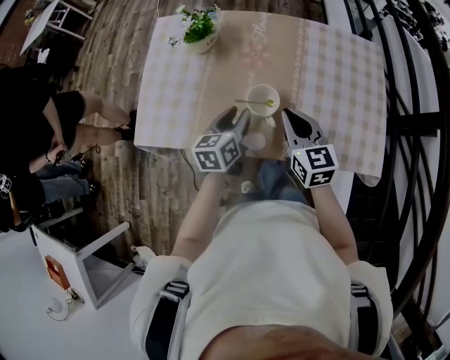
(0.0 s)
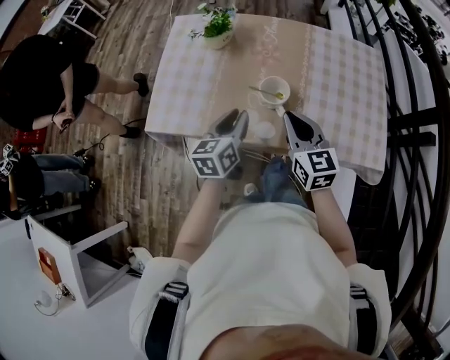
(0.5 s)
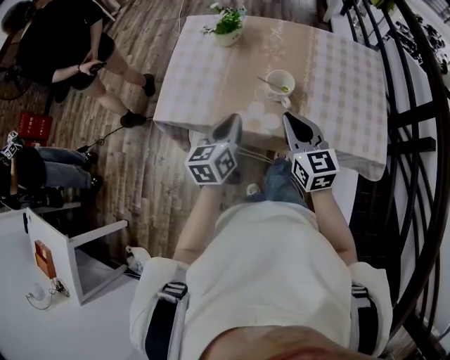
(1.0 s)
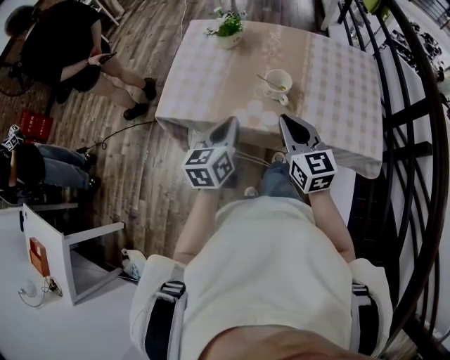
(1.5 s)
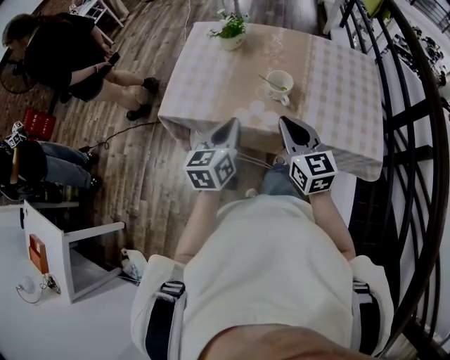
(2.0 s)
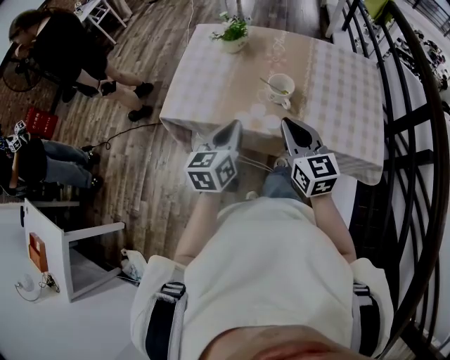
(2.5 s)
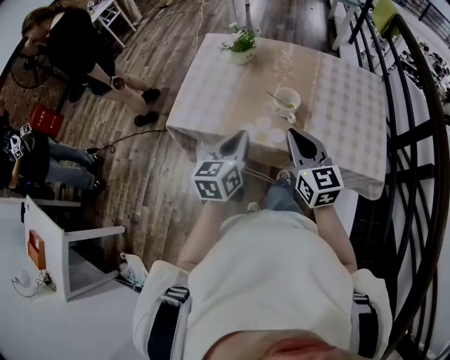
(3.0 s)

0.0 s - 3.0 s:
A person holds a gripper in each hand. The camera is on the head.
0.0 s - 1.5 s: Both grippers move backward, upward and to the left, roughly 15 cm. The left gripper closes.
1.5 s - 3.0 s: The grippers make only small movements.

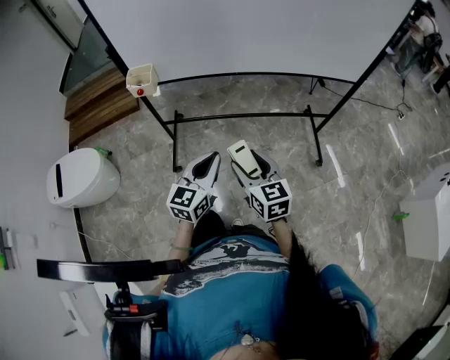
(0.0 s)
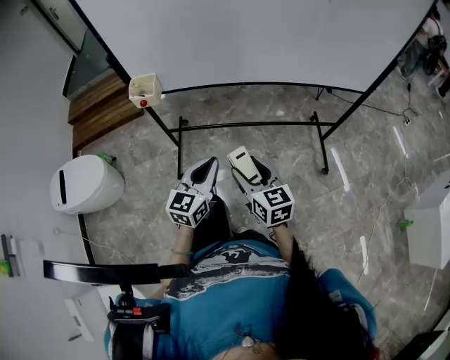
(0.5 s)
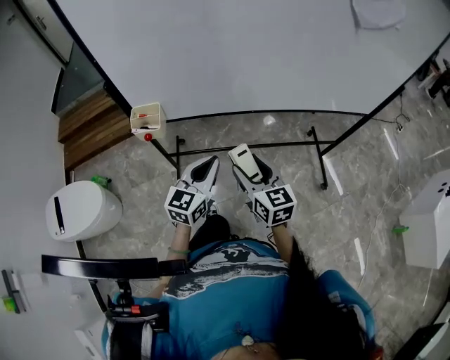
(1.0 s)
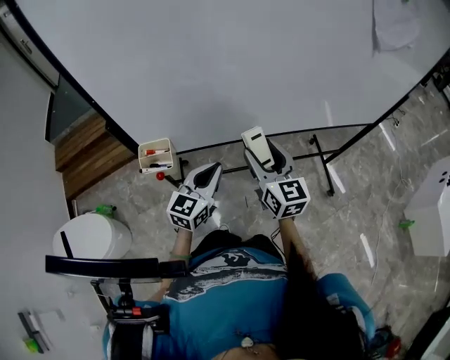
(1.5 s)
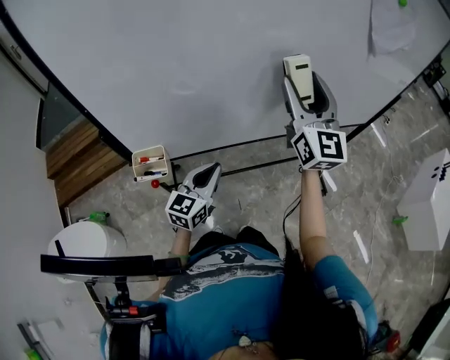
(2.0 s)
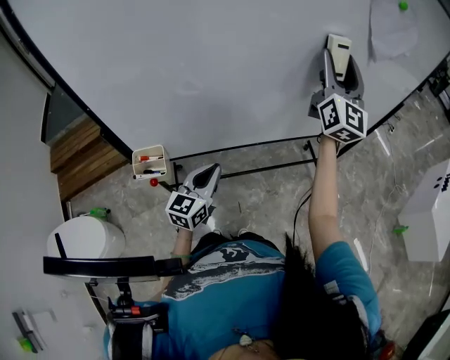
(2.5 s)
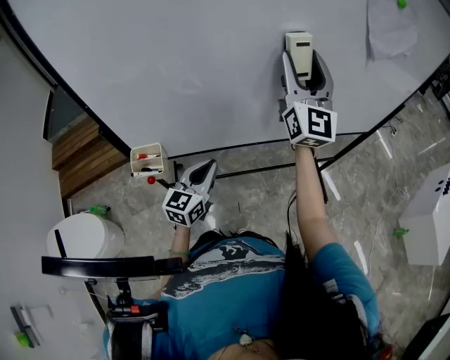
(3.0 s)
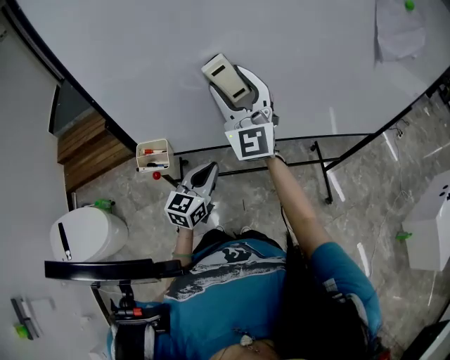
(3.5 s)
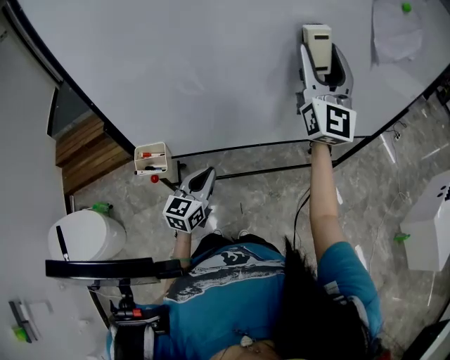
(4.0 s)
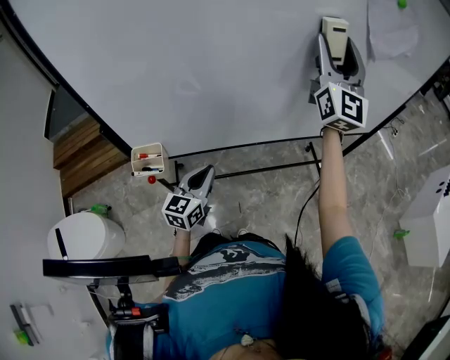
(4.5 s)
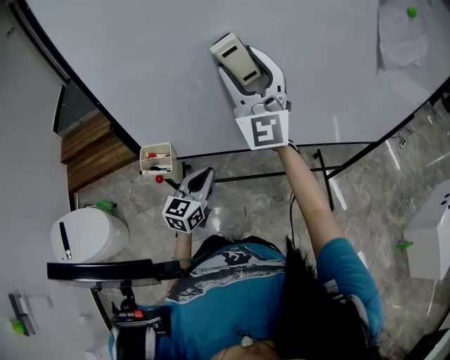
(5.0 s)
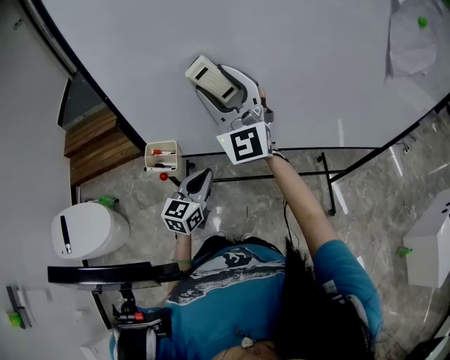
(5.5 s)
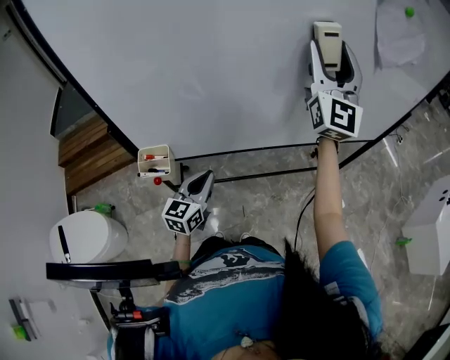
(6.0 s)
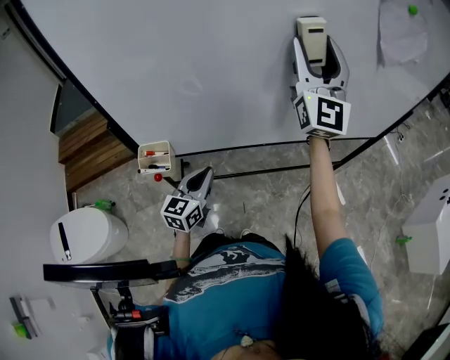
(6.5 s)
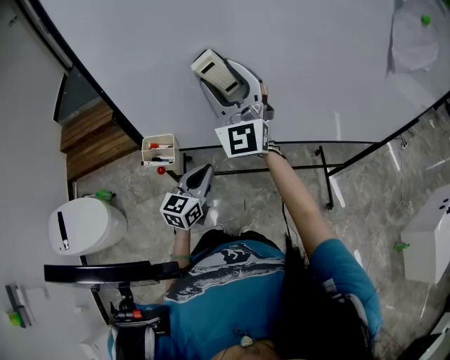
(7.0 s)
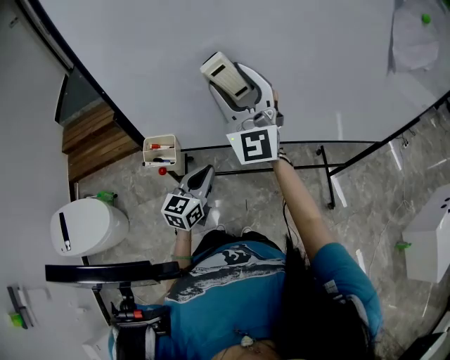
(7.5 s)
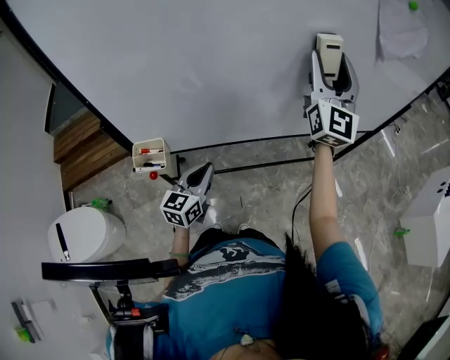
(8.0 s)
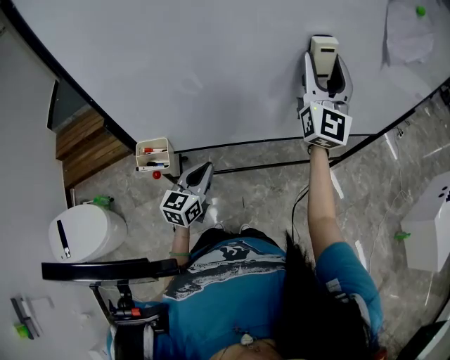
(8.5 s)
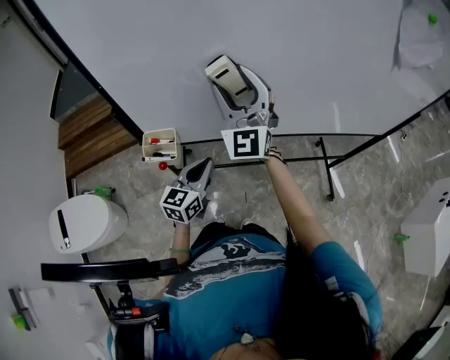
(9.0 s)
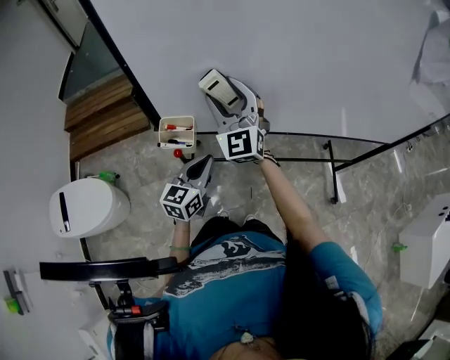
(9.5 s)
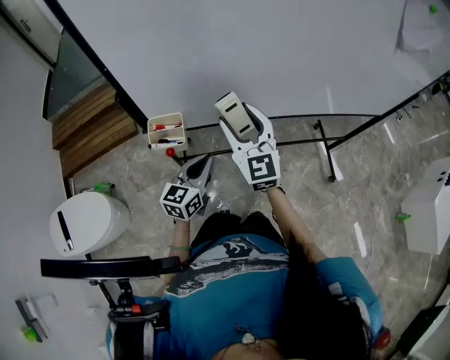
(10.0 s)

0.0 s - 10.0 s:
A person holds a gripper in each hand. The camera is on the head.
0.0 s - 2.0 s: The left gripper travels forward and to the left by roughly 35 cm; the right gripper is displaced forward and upward by some 50 cm, and points its fingers some 40 degrees further upward.
2.0 s - 4.0 s: The right gripper moves left and right over approximately 25 cm, changing direction 2 times.
4.0 s - 6.0 s: The right gripper swings left and right, about 30 cm each way, with 2 reversals.
6.0 s - 8.0 s: The right gripper travels to the left and back again, some 25 cm each way.
8.0 s - 10.0 s: The left gripper travels to the left by some 5 cm. The right gripper moves to the left, downward and backward, roughly 35 cm, and turns by about 40 degrees.

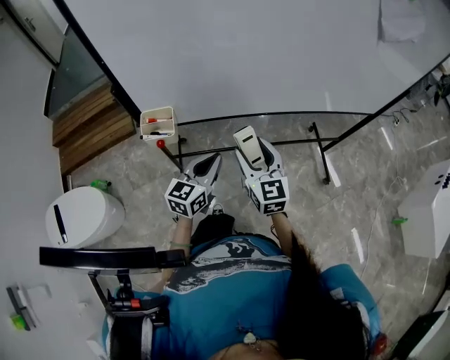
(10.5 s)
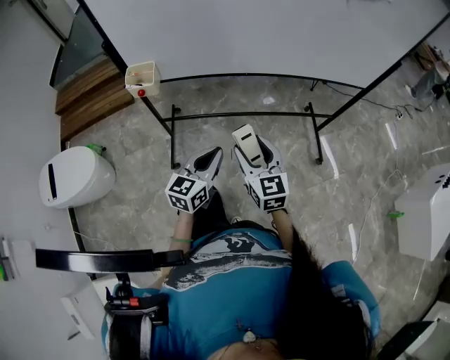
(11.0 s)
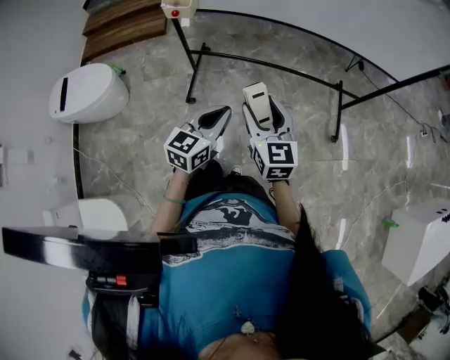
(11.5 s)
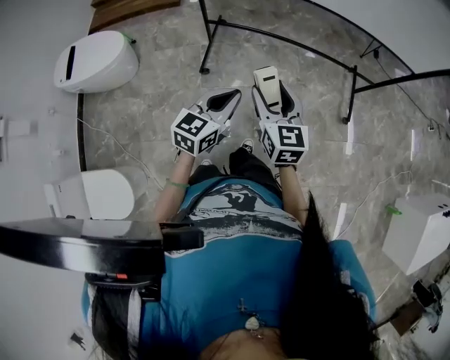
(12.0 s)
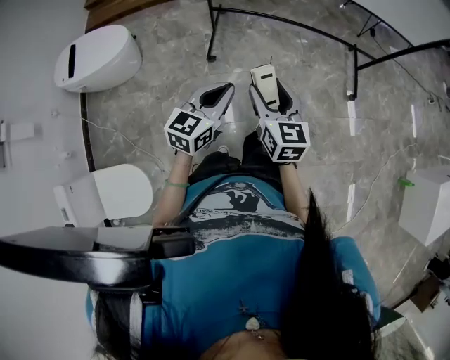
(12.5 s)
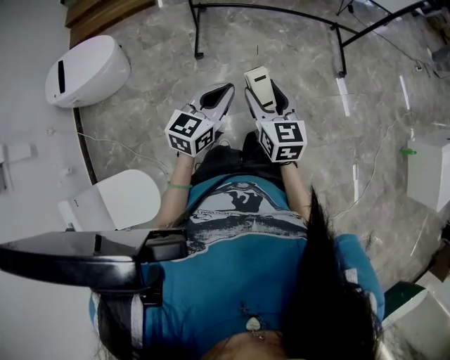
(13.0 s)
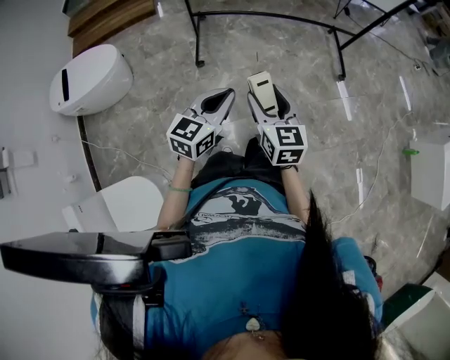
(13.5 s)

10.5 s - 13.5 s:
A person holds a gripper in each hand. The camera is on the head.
10.5 s - 12.0 s: The two grippers go about 35 cm backward.
12.0 s - 13.5 s: Both grippers travel together backward, about 20 cm.

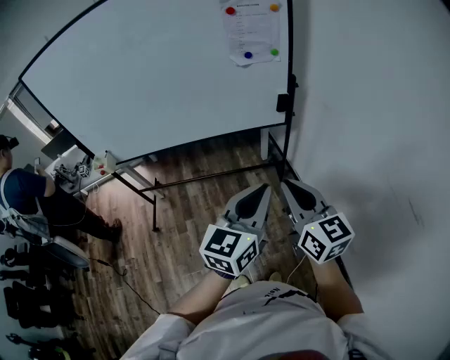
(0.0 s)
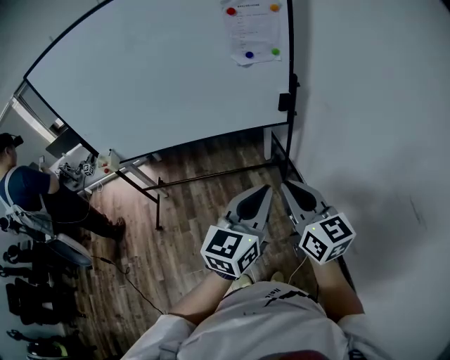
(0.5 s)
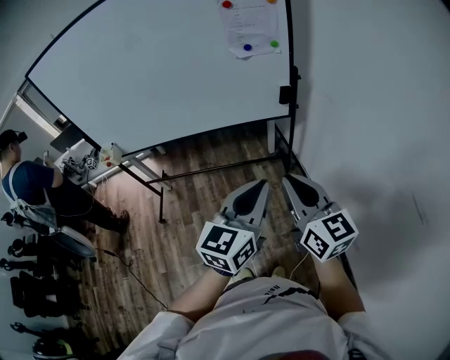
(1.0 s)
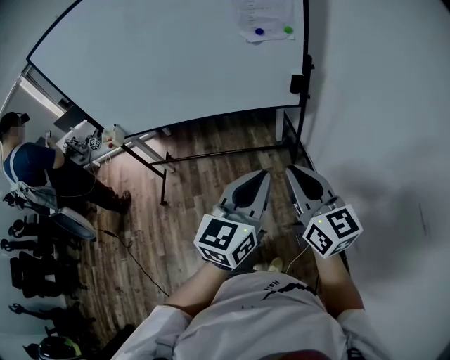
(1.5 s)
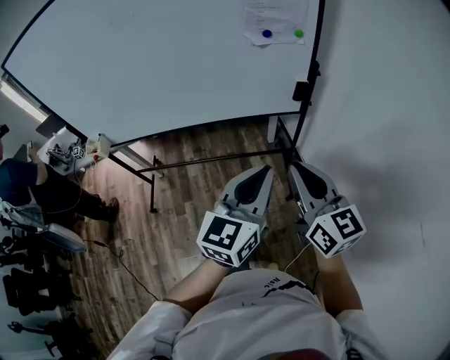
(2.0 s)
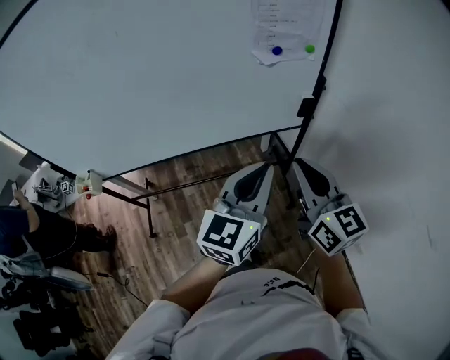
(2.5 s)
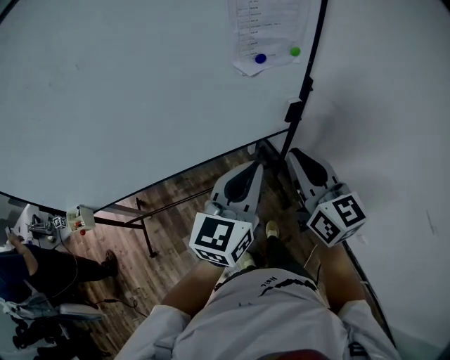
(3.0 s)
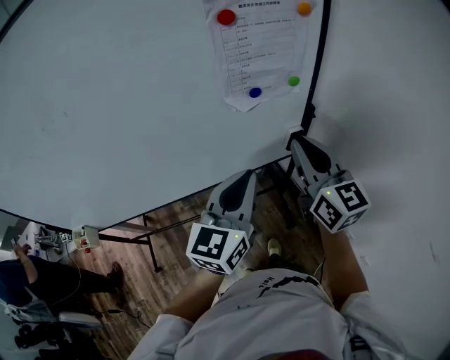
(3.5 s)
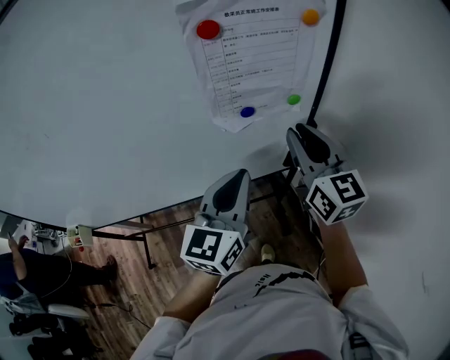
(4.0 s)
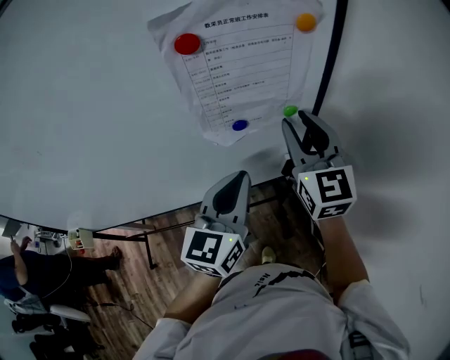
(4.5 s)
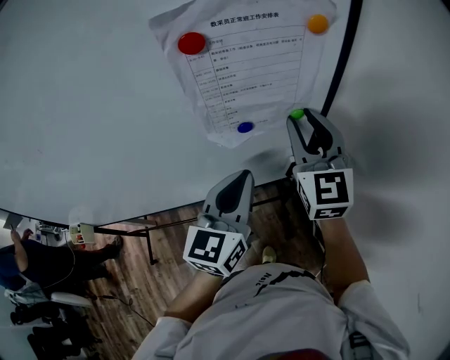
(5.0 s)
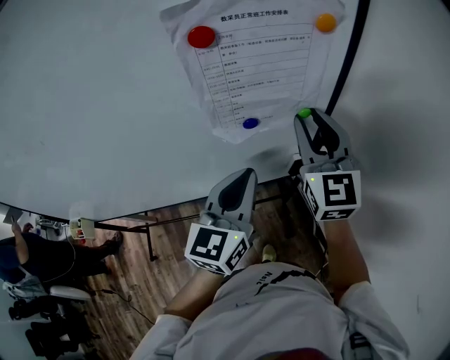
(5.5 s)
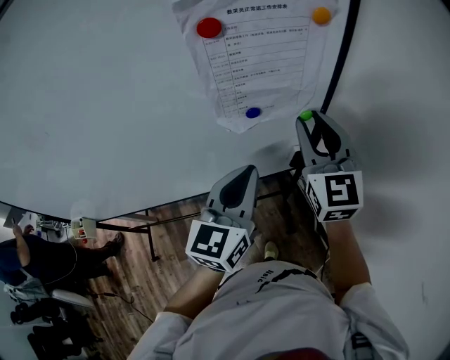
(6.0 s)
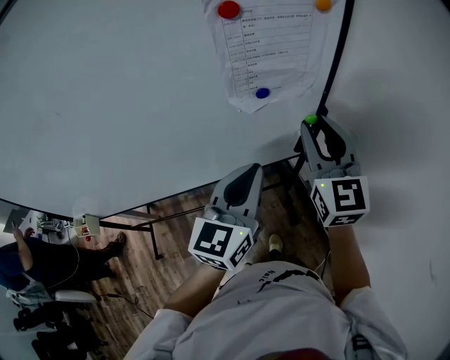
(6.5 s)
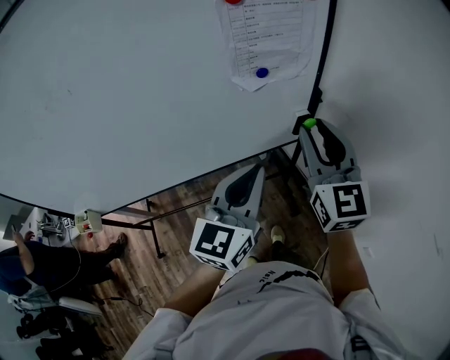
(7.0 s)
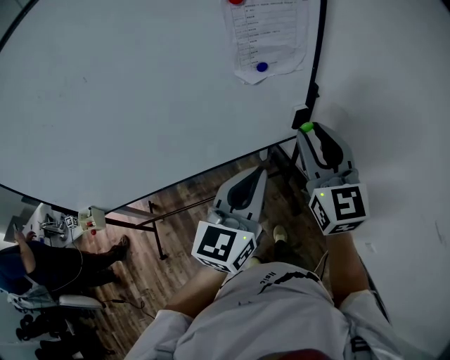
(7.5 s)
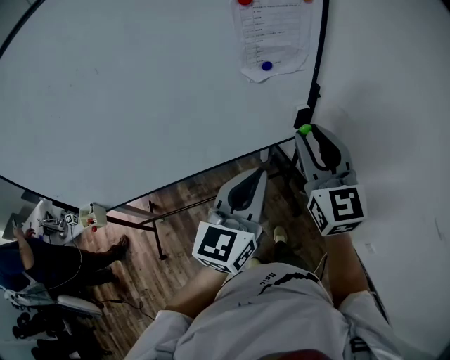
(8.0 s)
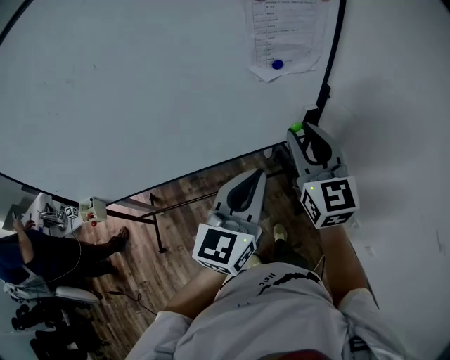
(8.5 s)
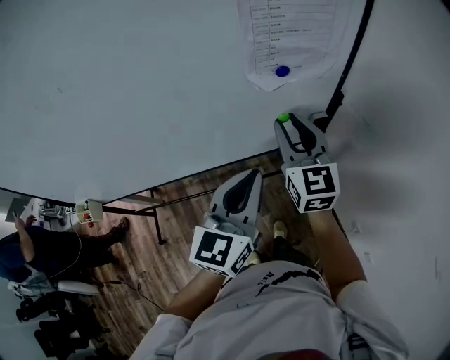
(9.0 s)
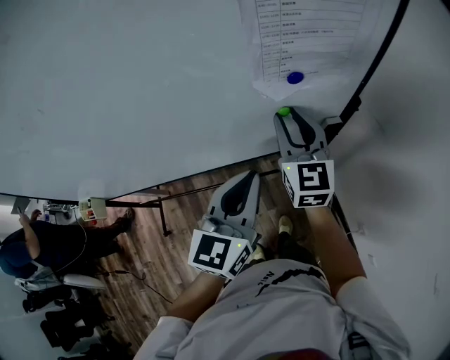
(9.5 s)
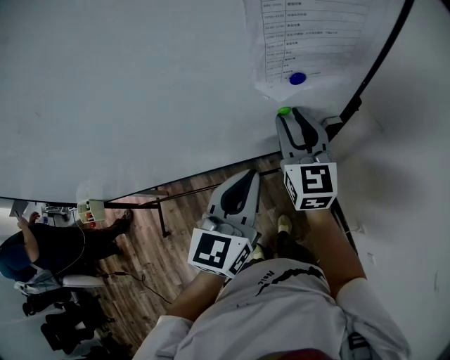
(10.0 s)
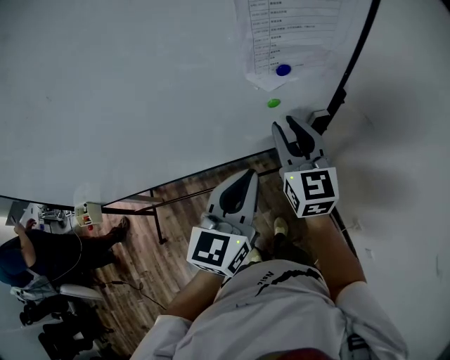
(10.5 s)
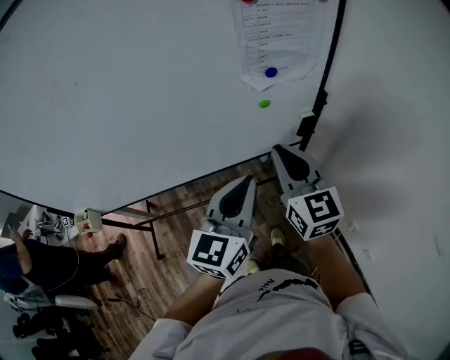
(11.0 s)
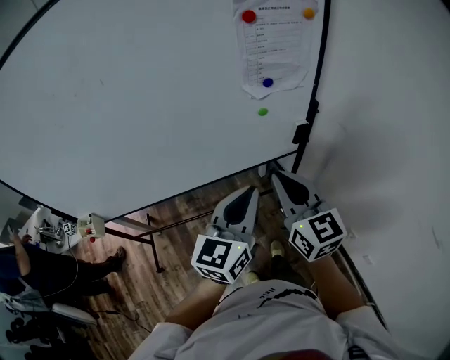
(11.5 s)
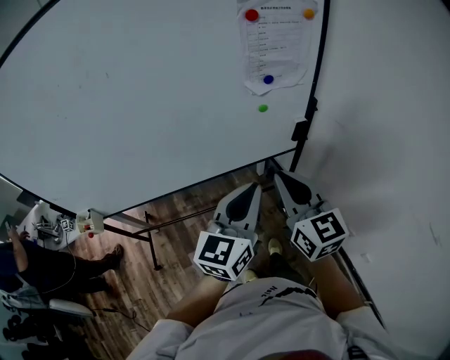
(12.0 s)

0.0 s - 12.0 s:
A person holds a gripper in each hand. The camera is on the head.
0.0 s - 2.0 s: Both grippers move forward, roughly 10 cm.
2.0 s - 4.0 s: The grippers both shift forward by approximately 35 cm.
6.0 s - 8.0 s: The two grippers go about 20 cm backward.
8.0 s - 10.0 s: The left gripper moves forward and downward, some 15 cm, while the right gripper heads forward and downward, covering roughly 25 cm.
10.0 s - 12.0 s: The right gripper goes roughly 25 cm backward, and closes up. Meanwhile the left gripper travels backward by roughly 15 cm.
